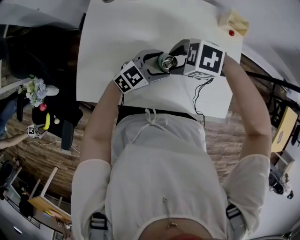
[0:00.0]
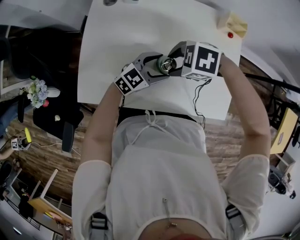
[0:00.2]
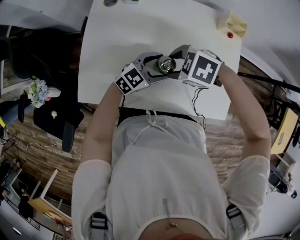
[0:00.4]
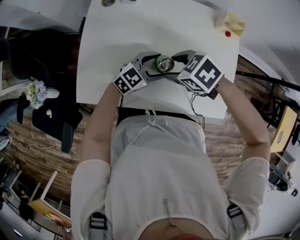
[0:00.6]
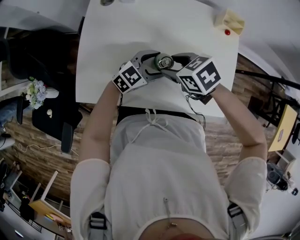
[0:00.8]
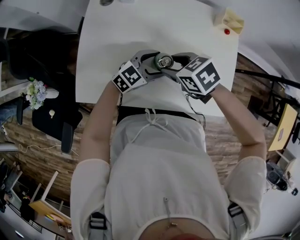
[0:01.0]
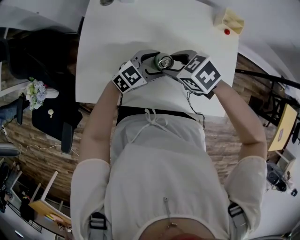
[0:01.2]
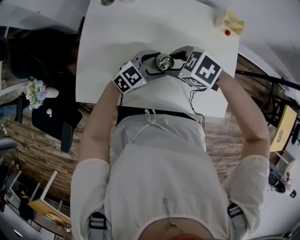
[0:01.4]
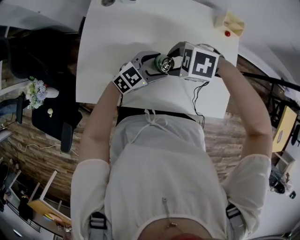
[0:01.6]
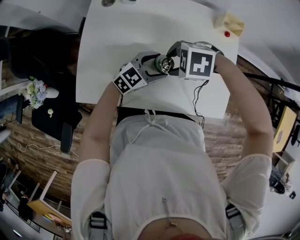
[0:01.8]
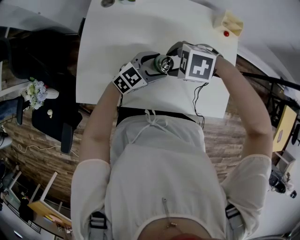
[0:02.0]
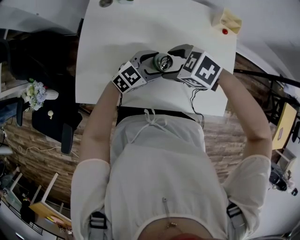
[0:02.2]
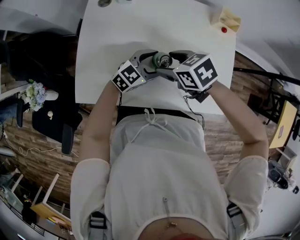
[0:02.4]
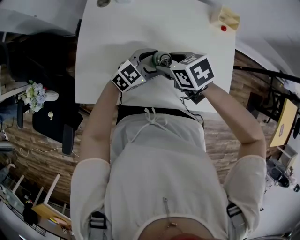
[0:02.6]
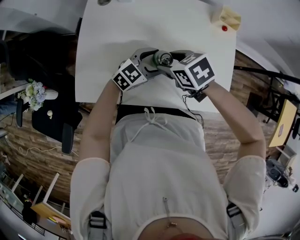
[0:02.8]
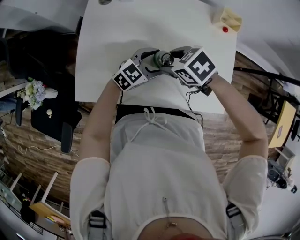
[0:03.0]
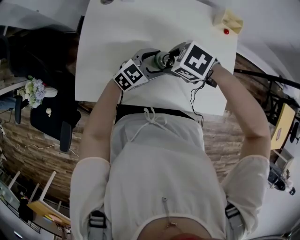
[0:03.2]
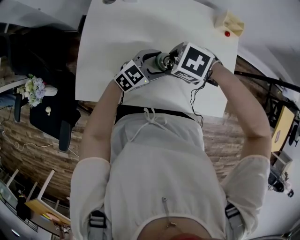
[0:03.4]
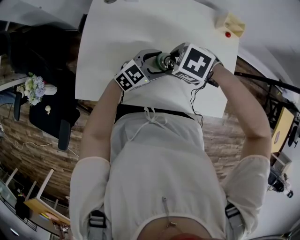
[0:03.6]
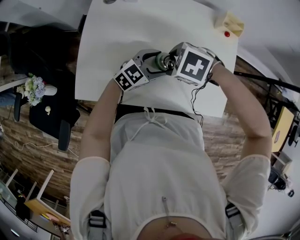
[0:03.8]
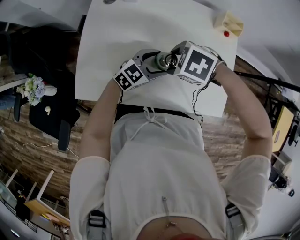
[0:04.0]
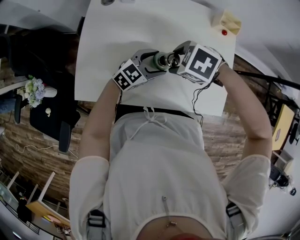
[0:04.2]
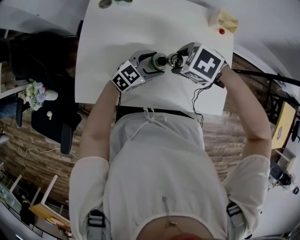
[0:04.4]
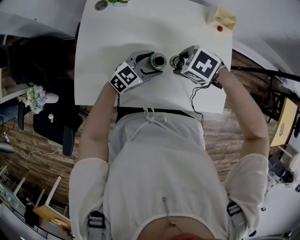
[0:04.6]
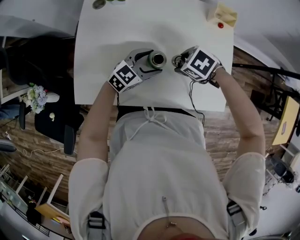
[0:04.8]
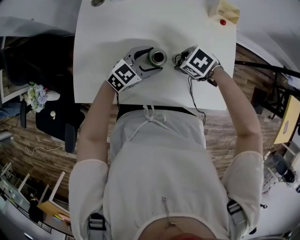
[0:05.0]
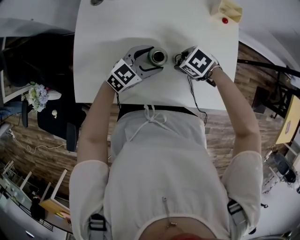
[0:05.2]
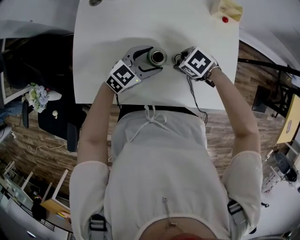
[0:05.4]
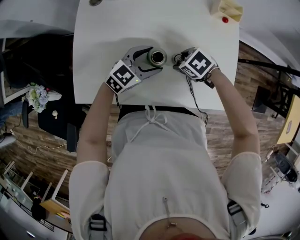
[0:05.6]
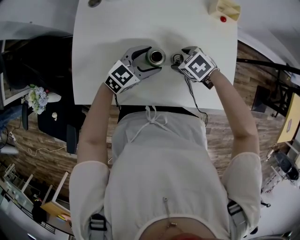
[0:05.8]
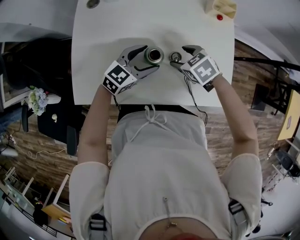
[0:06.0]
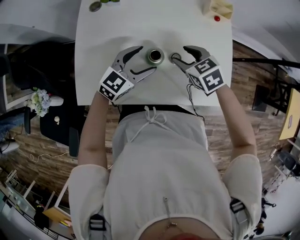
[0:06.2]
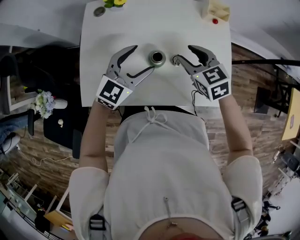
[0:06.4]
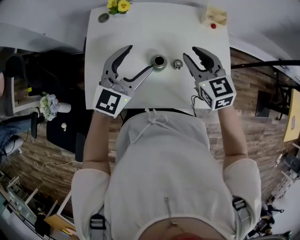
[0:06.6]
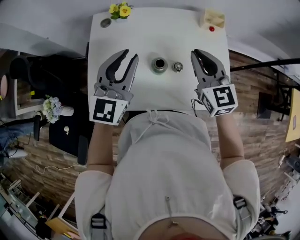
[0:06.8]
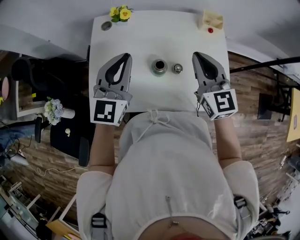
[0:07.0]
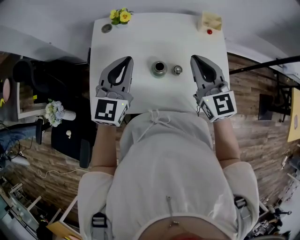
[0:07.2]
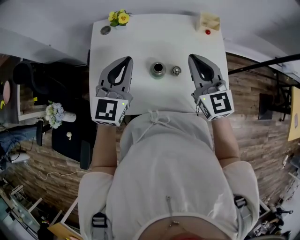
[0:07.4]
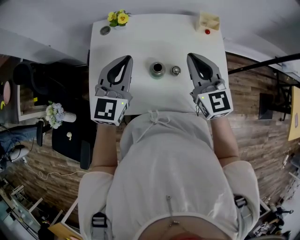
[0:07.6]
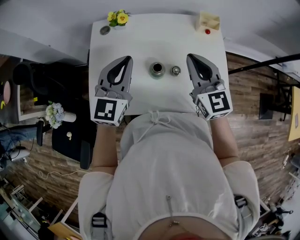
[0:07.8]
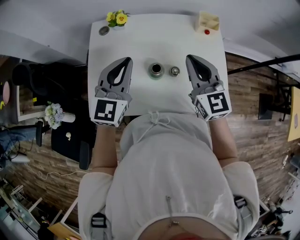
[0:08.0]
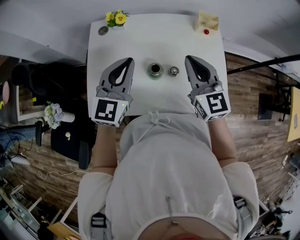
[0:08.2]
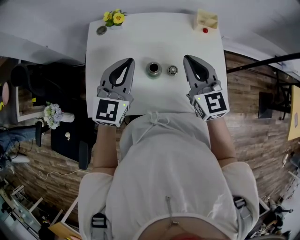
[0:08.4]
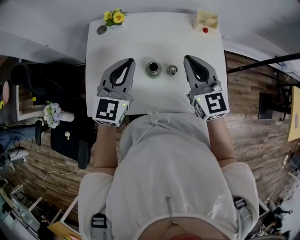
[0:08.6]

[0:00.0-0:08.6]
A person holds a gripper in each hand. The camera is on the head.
0:01.4 to 0:02.8: The right gripper rotates about 30 degrees.
0:02.8 to 0:04.4: The right gripper changes its angle by roughly 30 degrees.
0:04.4 to 0:05.8: The right gripper goes about 10 cm downward.
0:05.8 to 0:07.2: The two grippers go approximately 25 cm upward. The right gripper tips its fingers upward by roughly 60 degrees, and closes up, while the left gripper rotates approximately 40 degrees, and closes its fingers.
0:07.2 to 0:08.6: The grippers move only a little.

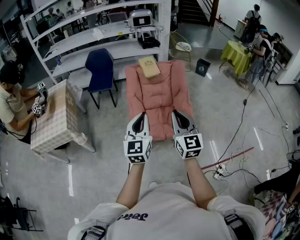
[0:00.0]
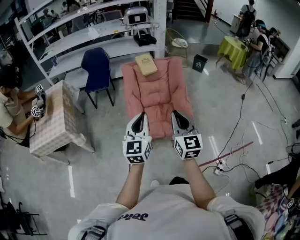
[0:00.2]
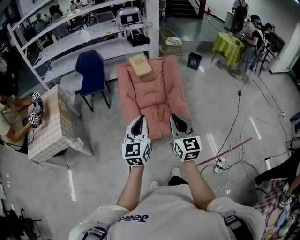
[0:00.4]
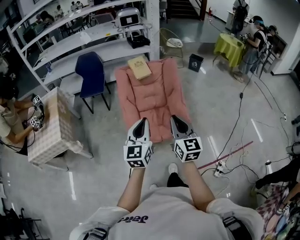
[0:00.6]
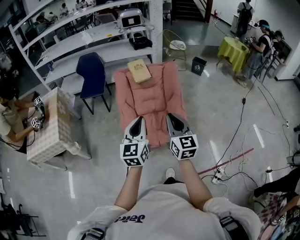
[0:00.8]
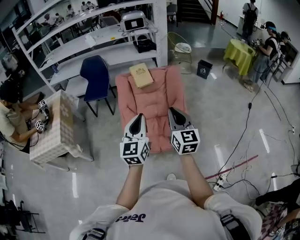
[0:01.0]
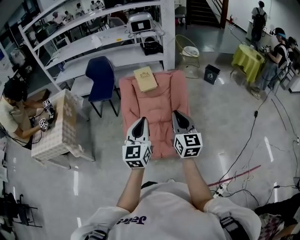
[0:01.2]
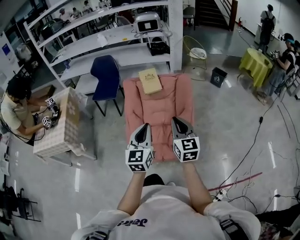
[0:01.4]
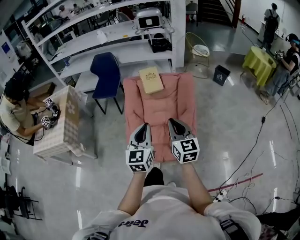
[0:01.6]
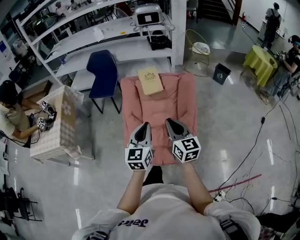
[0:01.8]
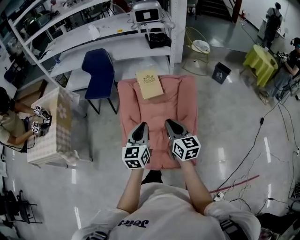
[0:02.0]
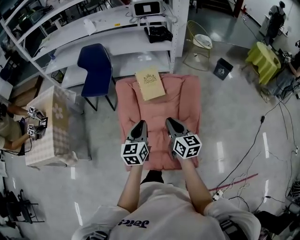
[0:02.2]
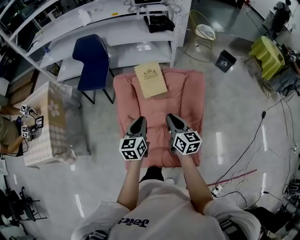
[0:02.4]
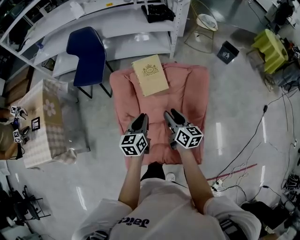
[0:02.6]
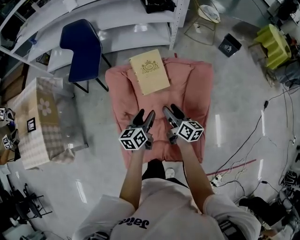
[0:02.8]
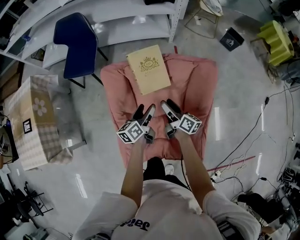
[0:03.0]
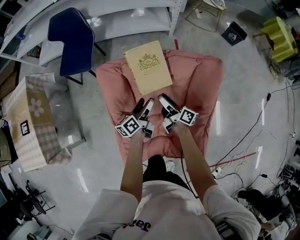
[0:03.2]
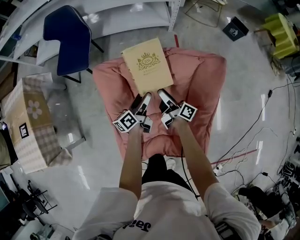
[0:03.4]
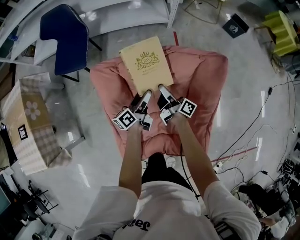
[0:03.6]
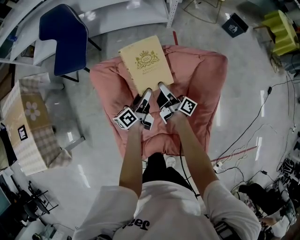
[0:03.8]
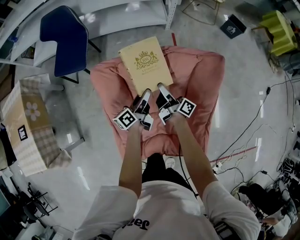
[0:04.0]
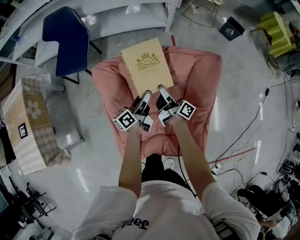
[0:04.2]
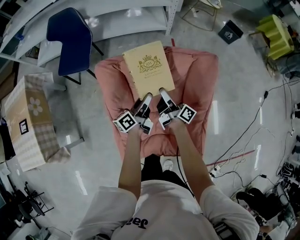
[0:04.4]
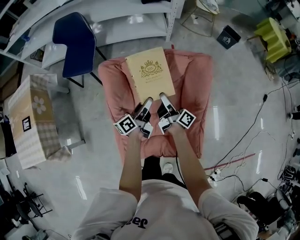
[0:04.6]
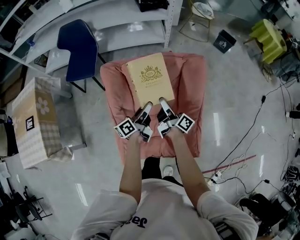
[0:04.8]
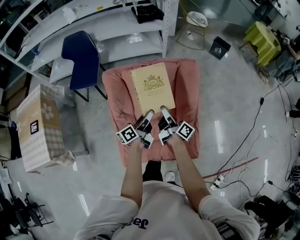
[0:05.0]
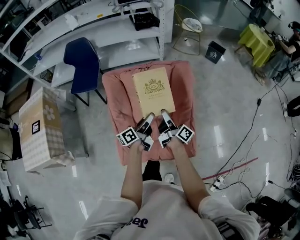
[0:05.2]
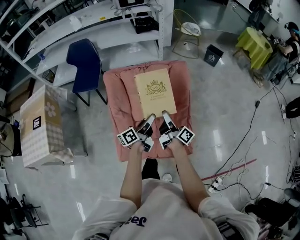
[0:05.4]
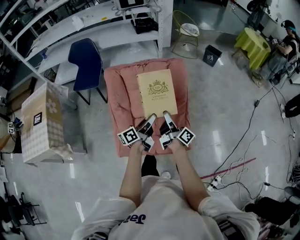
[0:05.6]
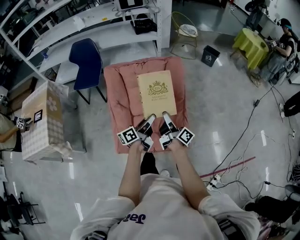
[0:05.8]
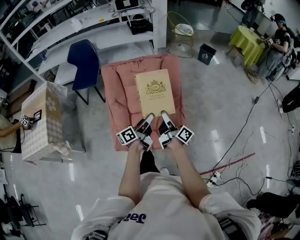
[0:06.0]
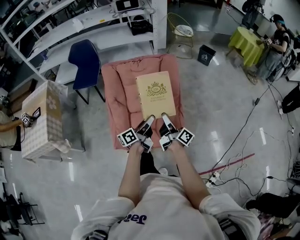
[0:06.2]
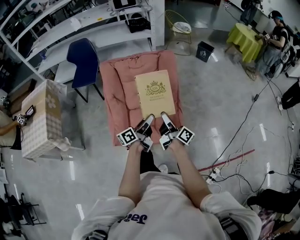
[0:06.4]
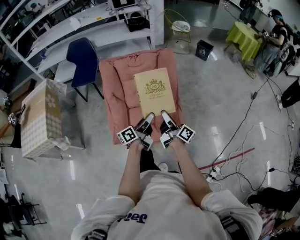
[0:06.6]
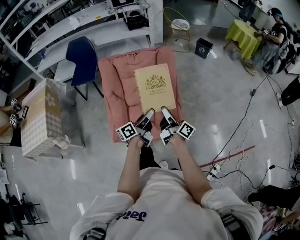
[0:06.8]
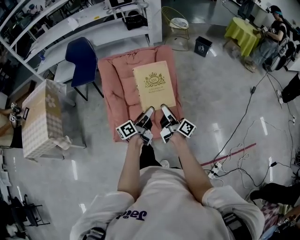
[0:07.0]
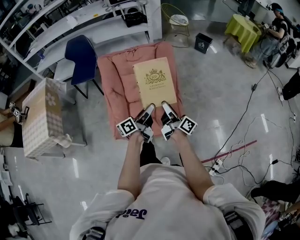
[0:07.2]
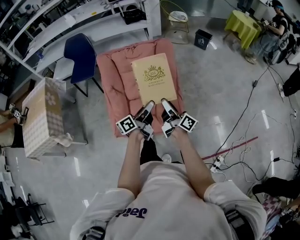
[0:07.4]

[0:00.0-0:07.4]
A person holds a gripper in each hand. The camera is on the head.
0:00.0 to 0:01.4: Both grippers move forward and to the right, roughly 25 cm.
0:01.4 to 0:03.0: The pair of grippers is taken forward, some 40 cm. Both grippers travel together downward, roughly 30 cm. The right gripper rolls clockwise, seen from behind, by some 60 degrees, and opens; the left gripper rotates around the line of its fingers by some 50 degrees, counterclockwise from behind, and opens up.
0:03.0 to 0:04.4: The right gripper turns by roughly 20 degrees. Meanwhile the left gripper closes up.
0:04.4 to 0:06.0: The right gripper heads backward and to the right, covering about 40 cm. The left gripper heads backward, to the right and upward, covering approximately 40 cm.
0:06.0 to 0:07.4: The right gripper changes place by some 5 cm.

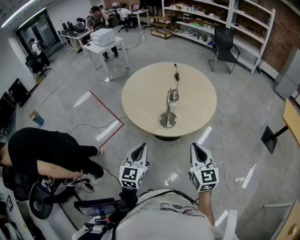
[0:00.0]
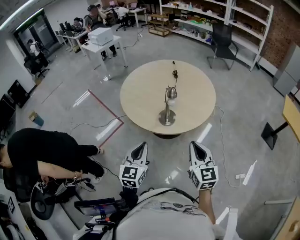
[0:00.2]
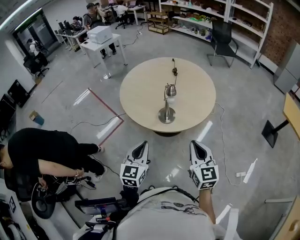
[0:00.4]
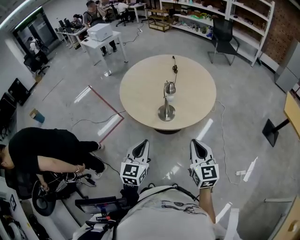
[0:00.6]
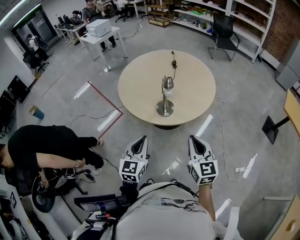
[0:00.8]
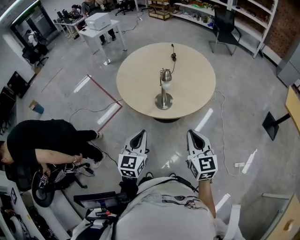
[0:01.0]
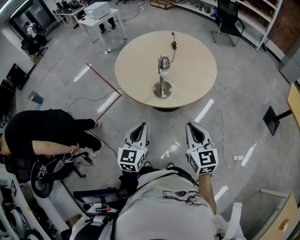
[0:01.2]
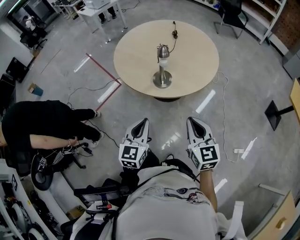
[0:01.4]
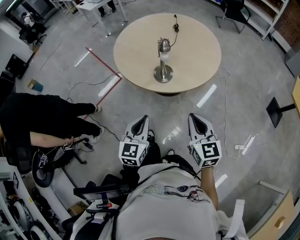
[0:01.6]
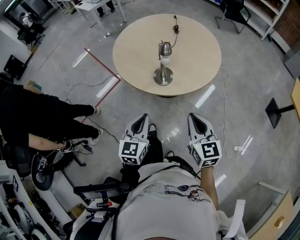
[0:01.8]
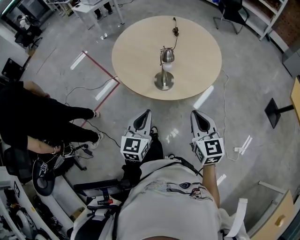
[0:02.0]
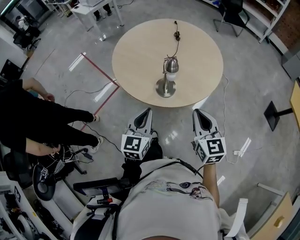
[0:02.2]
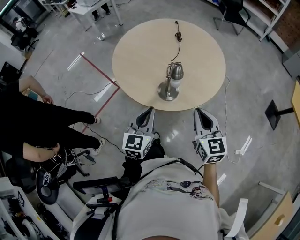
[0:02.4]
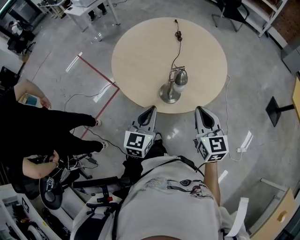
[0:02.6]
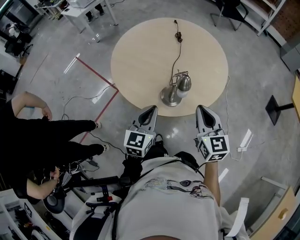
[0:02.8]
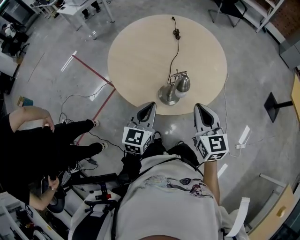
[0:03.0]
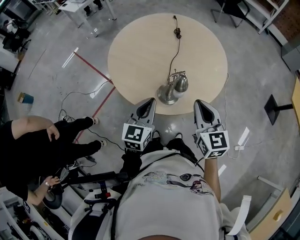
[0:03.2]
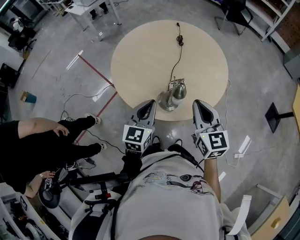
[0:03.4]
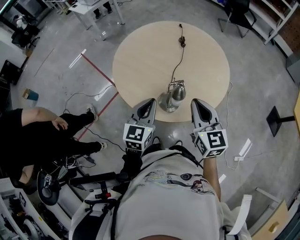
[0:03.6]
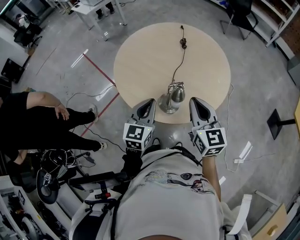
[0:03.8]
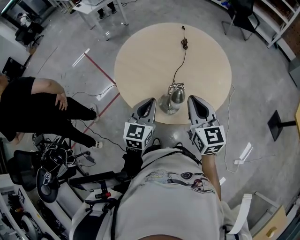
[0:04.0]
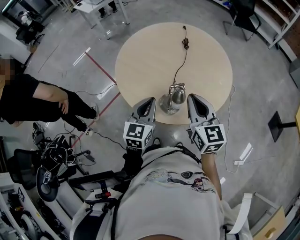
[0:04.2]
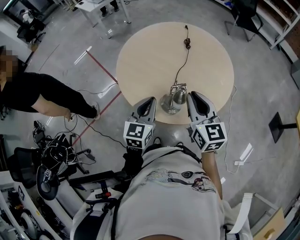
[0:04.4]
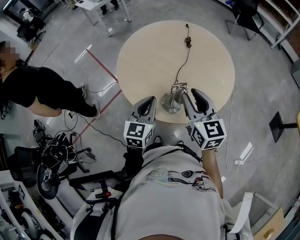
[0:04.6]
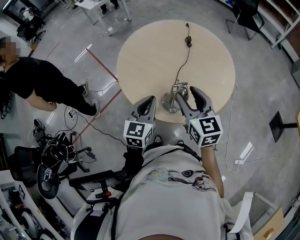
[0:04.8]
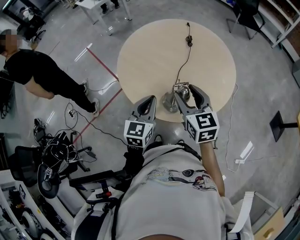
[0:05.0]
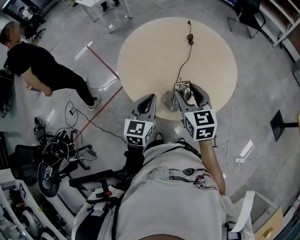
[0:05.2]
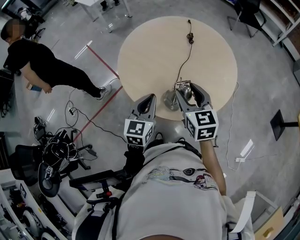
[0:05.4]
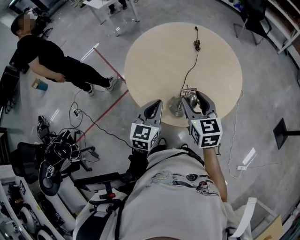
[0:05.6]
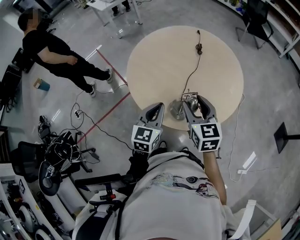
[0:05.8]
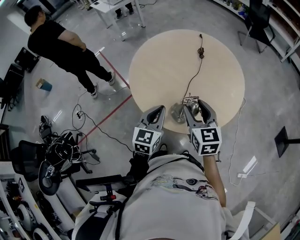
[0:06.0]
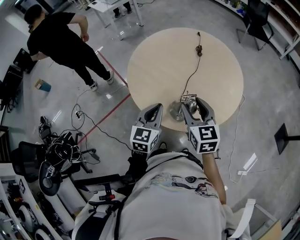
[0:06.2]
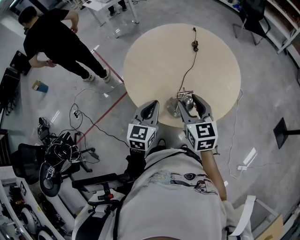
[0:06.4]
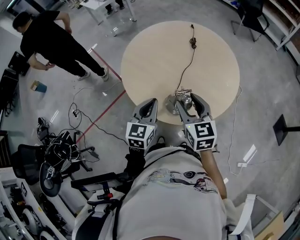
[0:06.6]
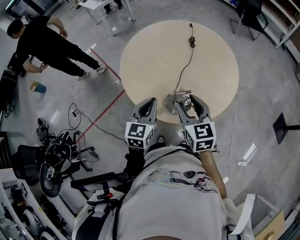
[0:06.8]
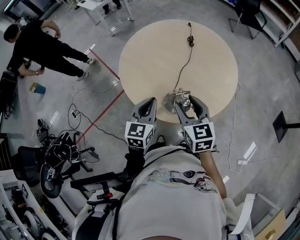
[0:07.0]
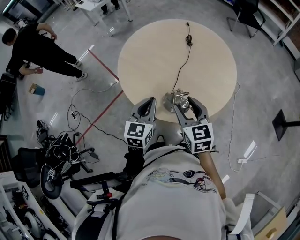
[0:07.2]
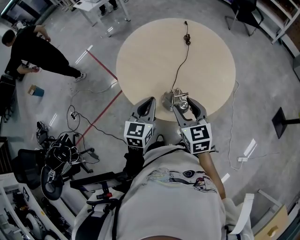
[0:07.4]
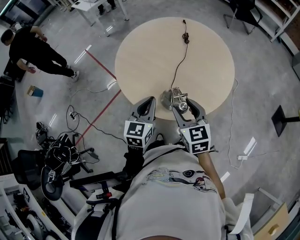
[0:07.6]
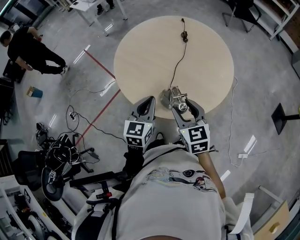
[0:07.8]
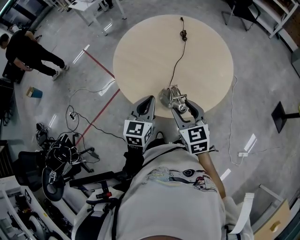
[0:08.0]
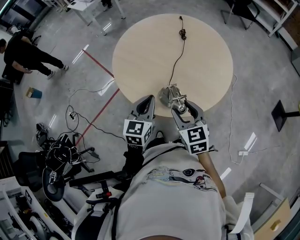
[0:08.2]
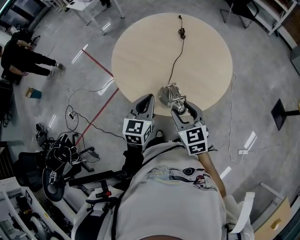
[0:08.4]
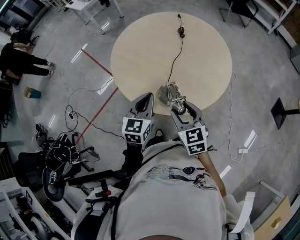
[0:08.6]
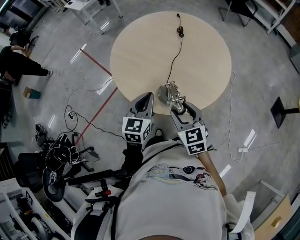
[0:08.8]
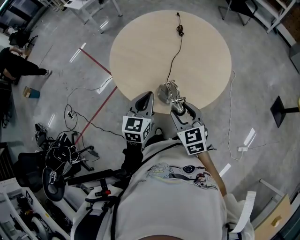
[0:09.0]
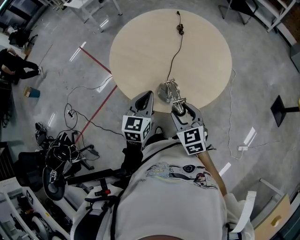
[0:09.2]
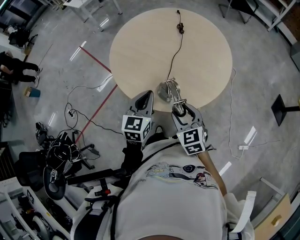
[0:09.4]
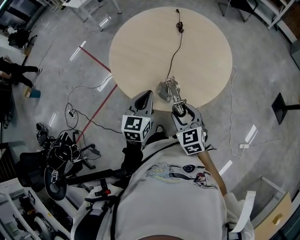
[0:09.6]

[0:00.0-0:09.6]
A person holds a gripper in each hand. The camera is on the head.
0:00.0 to 0:01.6: The right gripper is displaced downward by some 5 cm. Meanwhile the left gripper travels to the right and downward by some 10 cm.
0:01.6 to 0:03.2: Both grippers move forward, approximately 25 cm.
0:03.2 to 0:04.8: The right gripper goes some 10 cm forward, and opens up.
0:04.8 to 0:06.4: The grippers make only small movements.
0:06.4 to 0:08.0: The right gripper goes some 5 cm backward.
0:08.0 to 0:09.6: The right gripper is displaced downward by roughly 5 cm.
